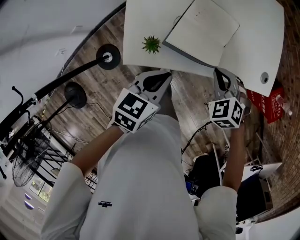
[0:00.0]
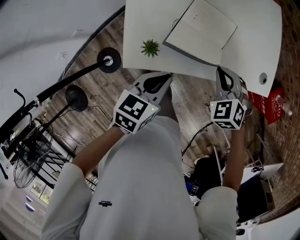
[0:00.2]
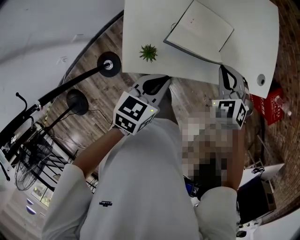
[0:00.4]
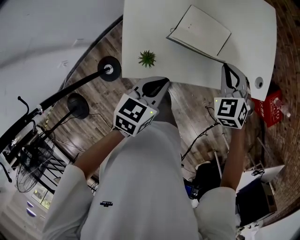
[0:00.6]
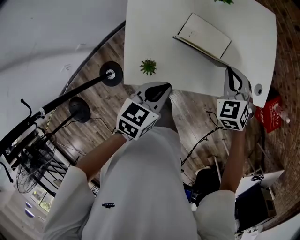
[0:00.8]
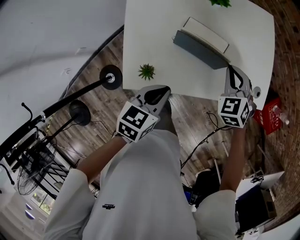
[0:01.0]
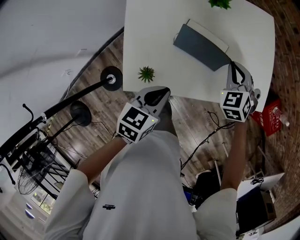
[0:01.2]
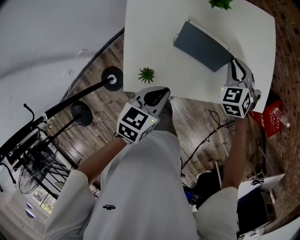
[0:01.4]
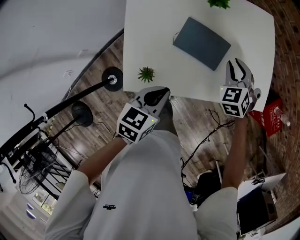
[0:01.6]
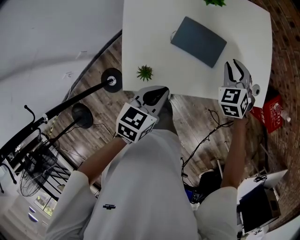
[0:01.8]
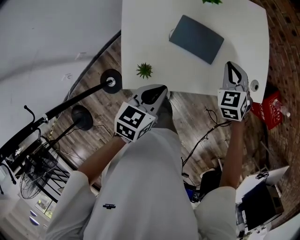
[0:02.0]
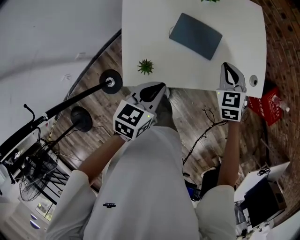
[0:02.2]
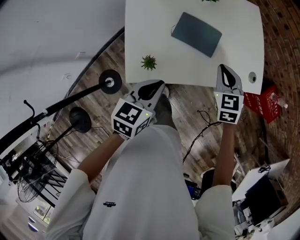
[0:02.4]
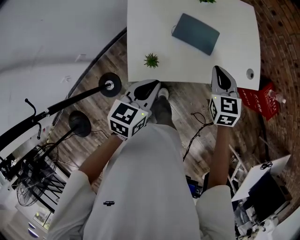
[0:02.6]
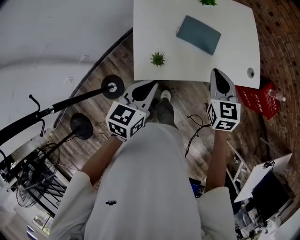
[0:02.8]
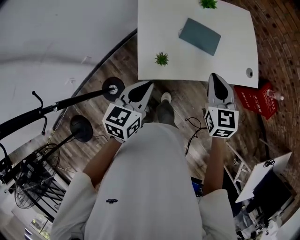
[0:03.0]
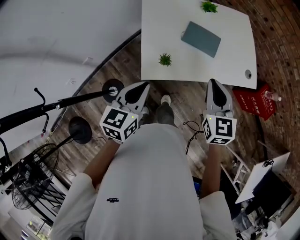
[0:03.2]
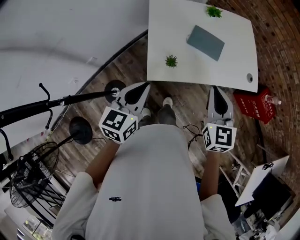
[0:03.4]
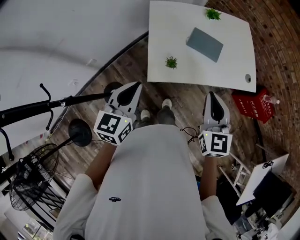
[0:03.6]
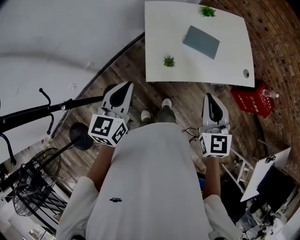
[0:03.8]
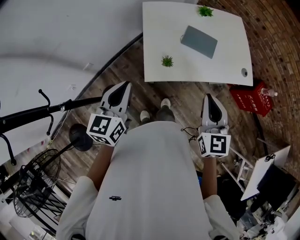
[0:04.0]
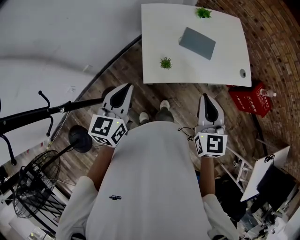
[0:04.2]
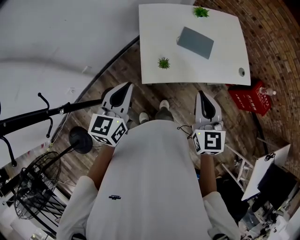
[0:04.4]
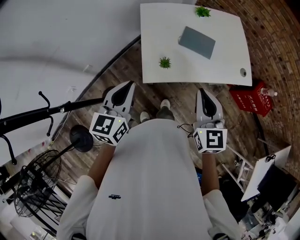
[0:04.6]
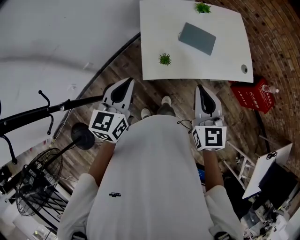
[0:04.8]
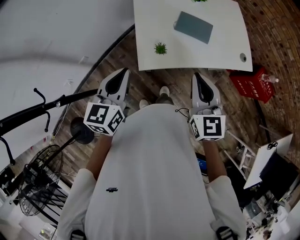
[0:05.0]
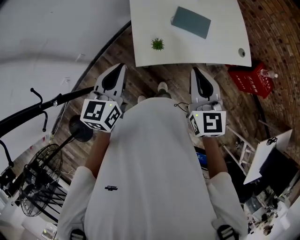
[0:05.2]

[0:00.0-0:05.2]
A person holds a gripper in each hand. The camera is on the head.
0:00.0 to 0:01.8: The right gripper moves forward, about 15 cm, changes its angle by roughly 30 degrees, and opens.
0:01.8 to 0:03.4: The right gripper moves backward, upward and to the left, about 35 cm, swivels approximately 40 degrees, and closes its fingers. The left gripper heads backward, to the left and upward, covering roughly 25 cm, and changes its angle by roughly 20 degrees.

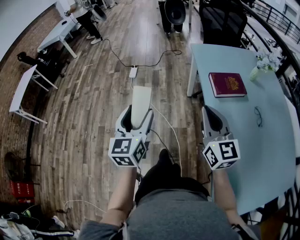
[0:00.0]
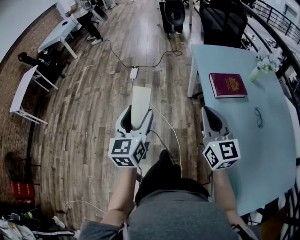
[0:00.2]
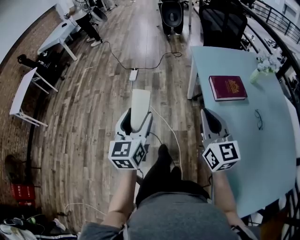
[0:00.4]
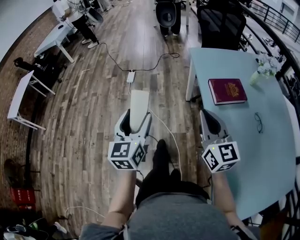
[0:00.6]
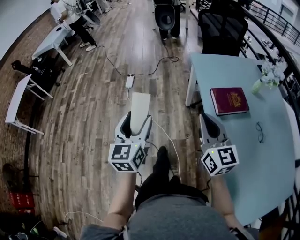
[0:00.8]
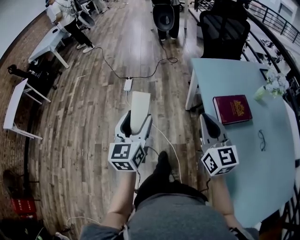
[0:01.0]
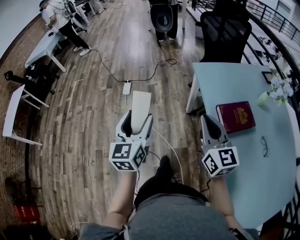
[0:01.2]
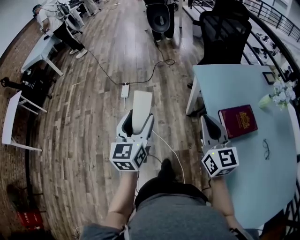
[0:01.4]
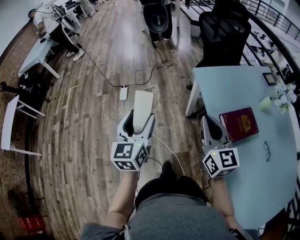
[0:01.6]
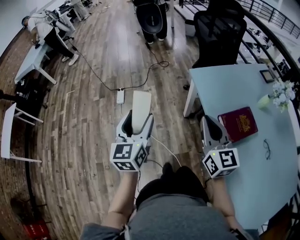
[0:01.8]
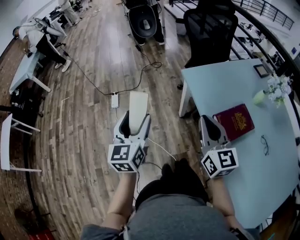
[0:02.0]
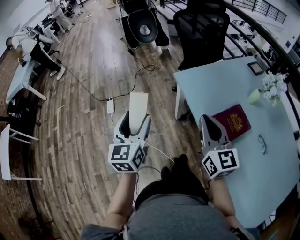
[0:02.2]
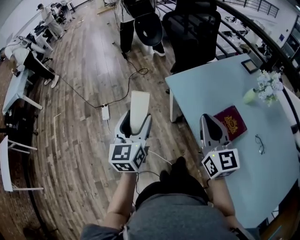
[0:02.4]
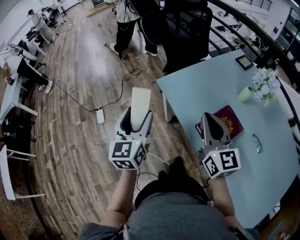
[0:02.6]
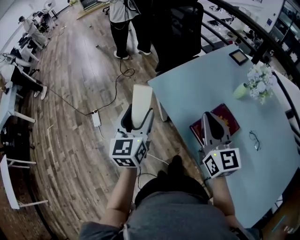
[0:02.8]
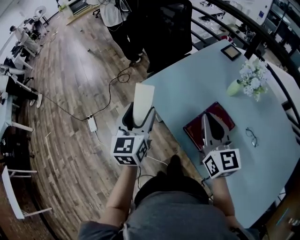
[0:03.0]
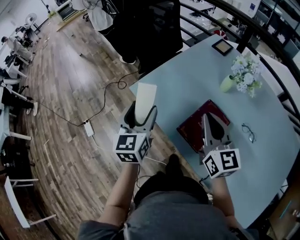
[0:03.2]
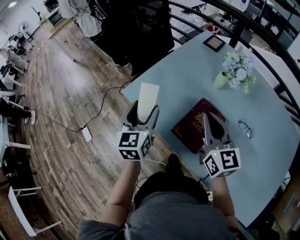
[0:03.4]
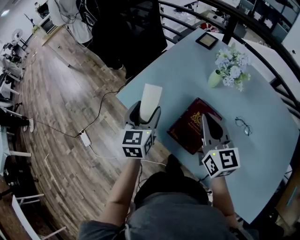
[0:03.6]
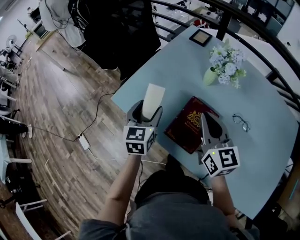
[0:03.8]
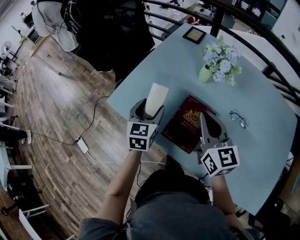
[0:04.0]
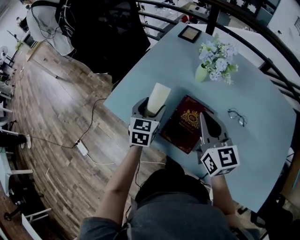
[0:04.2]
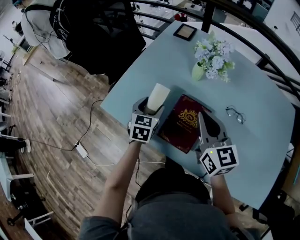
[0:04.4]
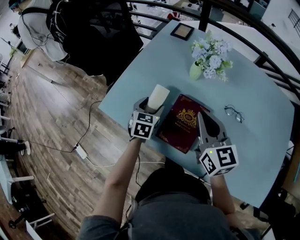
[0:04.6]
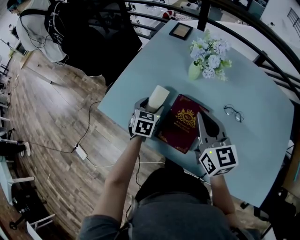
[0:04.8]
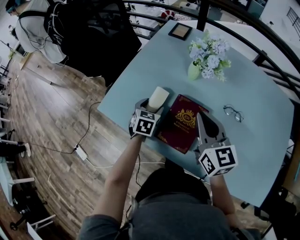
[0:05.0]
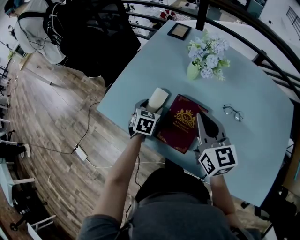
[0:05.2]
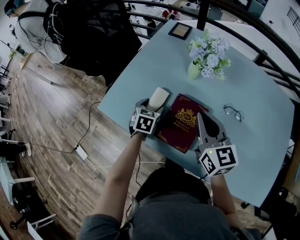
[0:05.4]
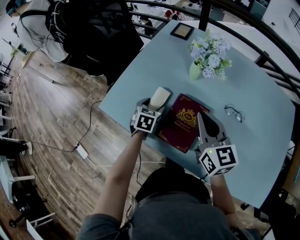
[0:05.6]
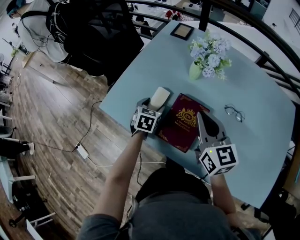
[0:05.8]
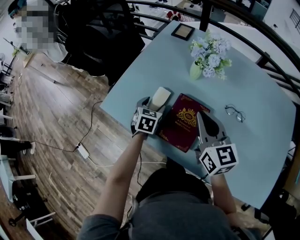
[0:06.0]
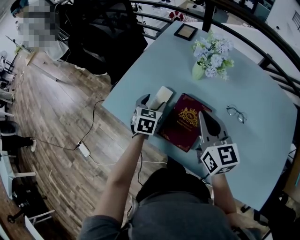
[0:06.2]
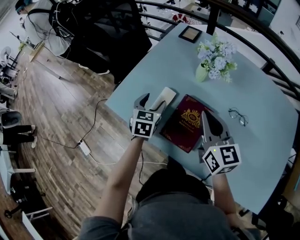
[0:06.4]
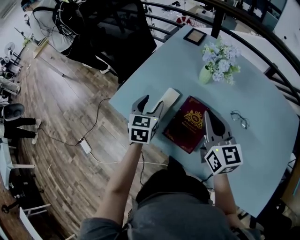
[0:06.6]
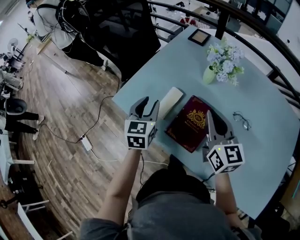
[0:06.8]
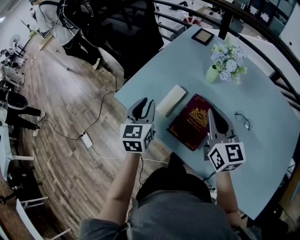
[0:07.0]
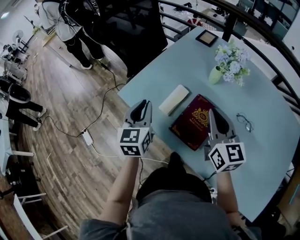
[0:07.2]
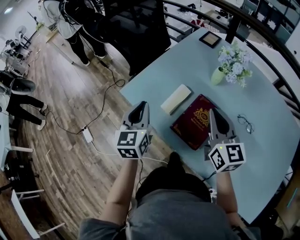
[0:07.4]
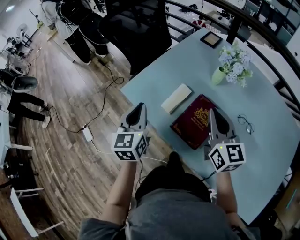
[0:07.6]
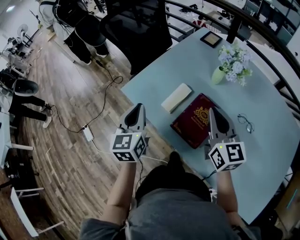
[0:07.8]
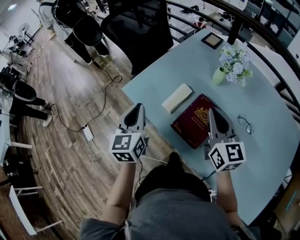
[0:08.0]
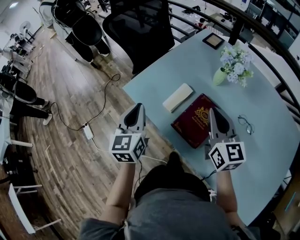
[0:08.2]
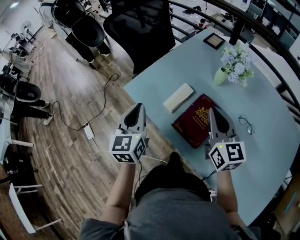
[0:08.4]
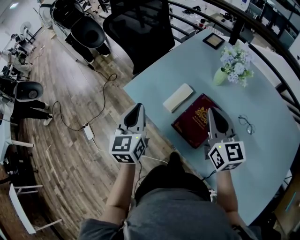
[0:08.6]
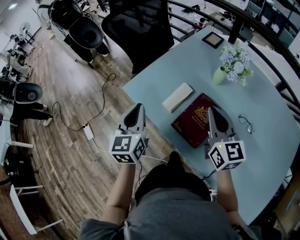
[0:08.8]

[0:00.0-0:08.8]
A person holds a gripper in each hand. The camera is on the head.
0:00.0 to 0:01.4: Both grippers move forward, about 25 cm.
0:01.4 to 0:03.0: The right gripper moves some 20 cm, and turns by approximately 30 degrees, while the left gripper moves about 30 cm, and rotates about 30 degrees.
0:03.0 to 0:04.4: The right gripper is displaced to the right by roughly 10 cm. The left gripper goes approximately 25 cm to the right, downward and forward, and rotates some 40 degrees.
0:04.4 to 0:05.8: The left gripper moves downward, some 5 cm.
0:05.8 to 0:07.4: The left gripper heads upward, to the left and backward, covering some 25 cm, changes its angle by approximately 40 degrees, and closes up.
0:07.4 to 0:08.8: The grippers move only a little.

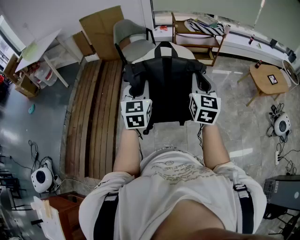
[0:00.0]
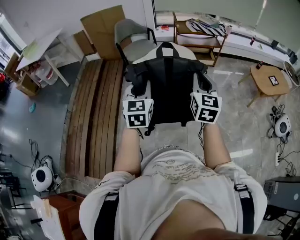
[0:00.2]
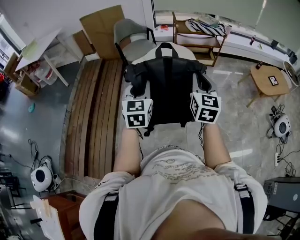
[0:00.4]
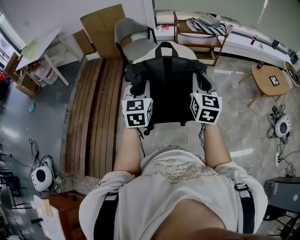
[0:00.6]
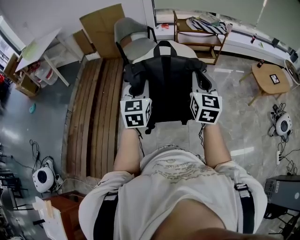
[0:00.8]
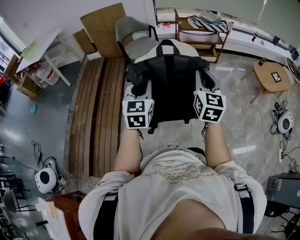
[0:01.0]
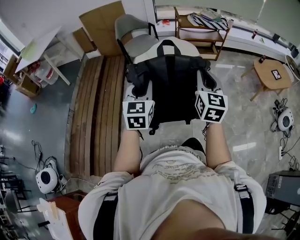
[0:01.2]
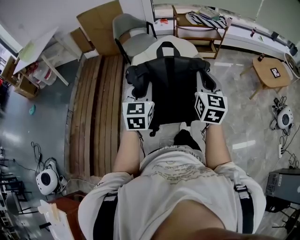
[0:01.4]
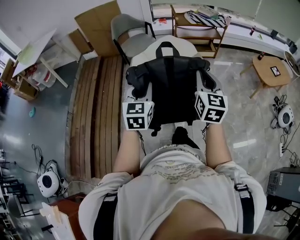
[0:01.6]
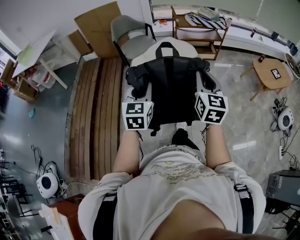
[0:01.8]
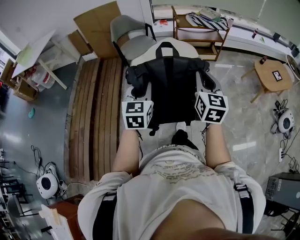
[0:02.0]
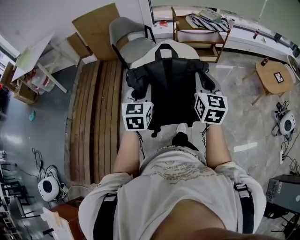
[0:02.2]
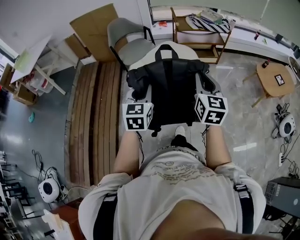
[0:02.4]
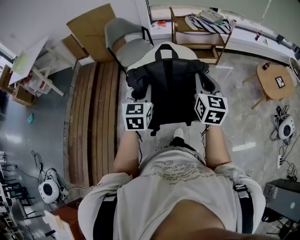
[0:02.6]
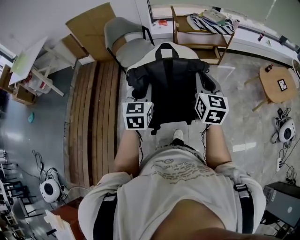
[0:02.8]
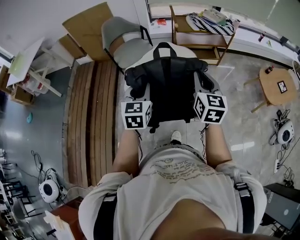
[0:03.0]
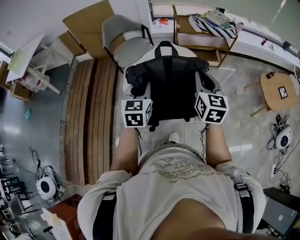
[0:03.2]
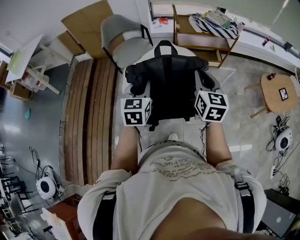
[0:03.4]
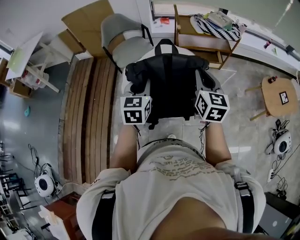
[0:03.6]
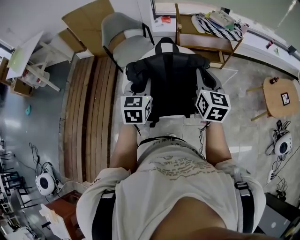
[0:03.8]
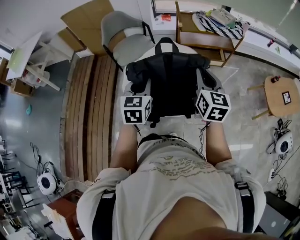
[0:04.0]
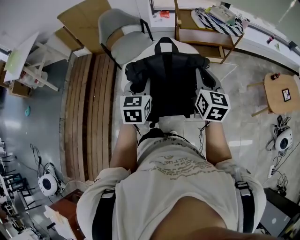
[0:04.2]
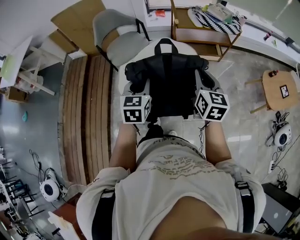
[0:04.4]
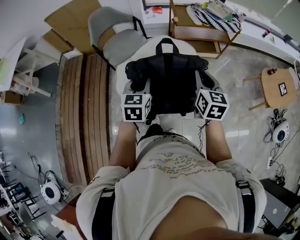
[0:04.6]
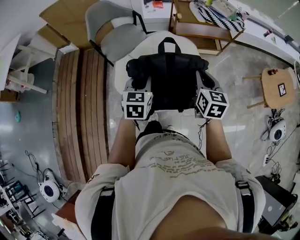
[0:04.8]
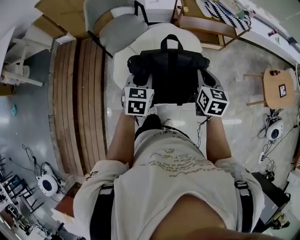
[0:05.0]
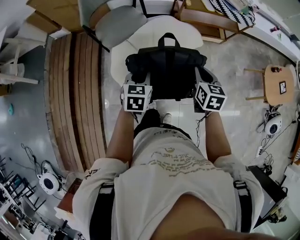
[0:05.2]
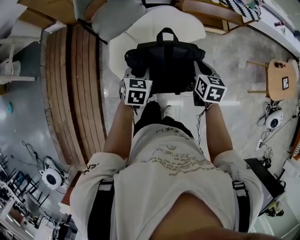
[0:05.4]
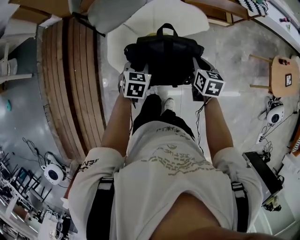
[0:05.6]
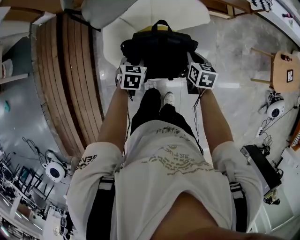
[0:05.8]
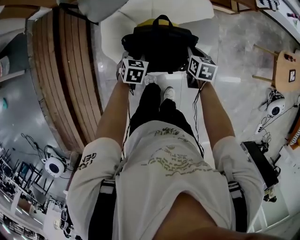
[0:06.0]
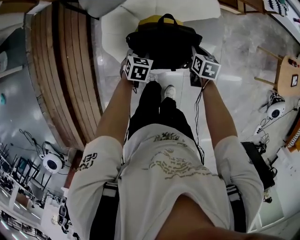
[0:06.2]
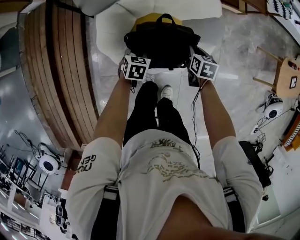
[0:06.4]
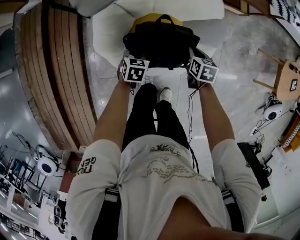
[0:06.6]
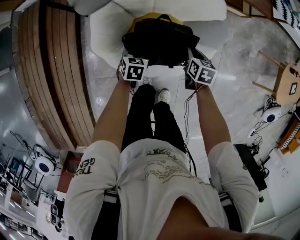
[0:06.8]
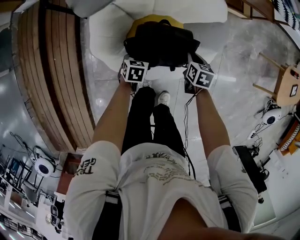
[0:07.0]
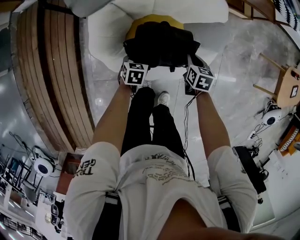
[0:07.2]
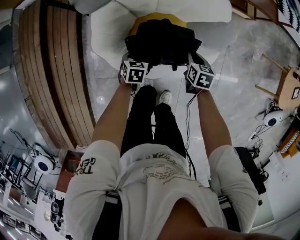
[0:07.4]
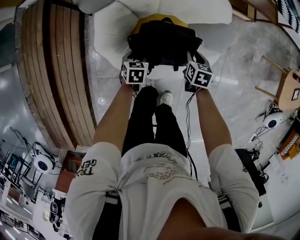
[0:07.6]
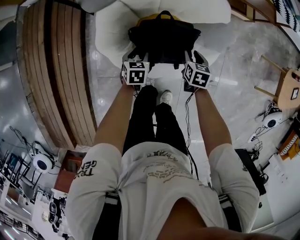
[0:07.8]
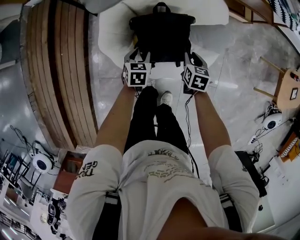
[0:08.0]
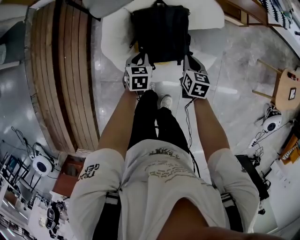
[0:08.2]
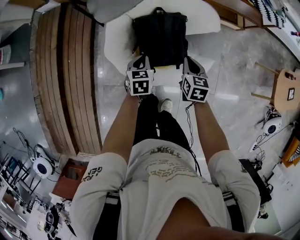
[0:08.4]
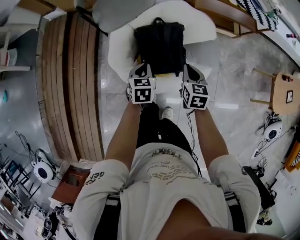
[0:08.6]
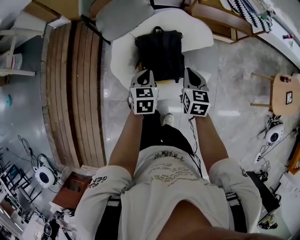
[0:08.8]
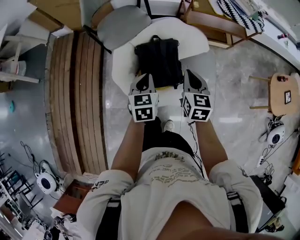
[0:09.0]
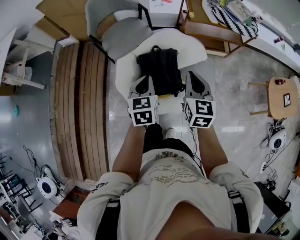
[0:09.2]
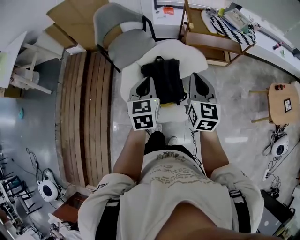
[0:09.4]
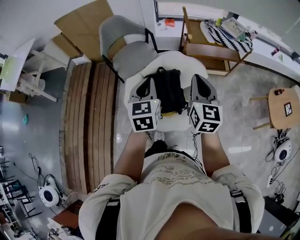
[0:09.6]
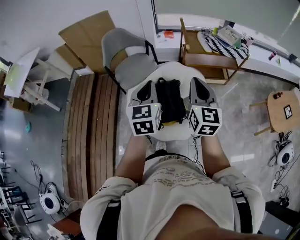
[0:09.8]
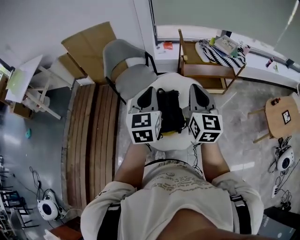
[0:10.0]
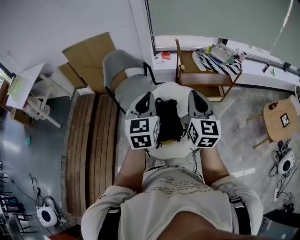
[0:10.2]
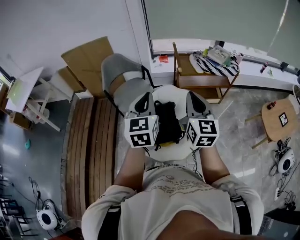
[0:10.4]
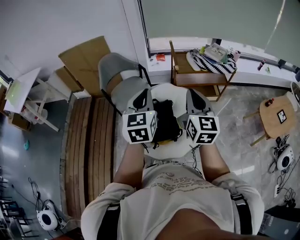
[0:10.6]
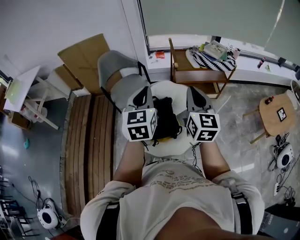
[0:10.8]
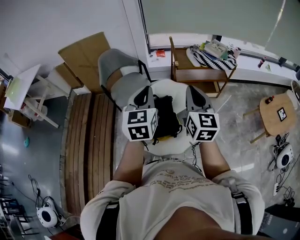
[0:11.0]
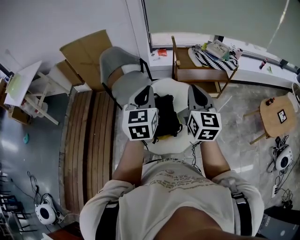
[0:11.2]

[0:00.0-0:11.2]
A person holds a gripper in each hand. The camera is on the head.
0:00.0 to 0:01.6: The grippers make only small movements.
0:01.6 to 0:03.2: The two grippers go roughly 30 cm forward.
0:03.2 to 0:04.8: The grippers both shift forward and downward by approximately 20 cm.
0:04.8 to 0:06.4: The grippers both shift downward by about 40 cm. The left gripper turns by some 30 degrees, while the right gripper tips its fingers downward by roughly 30 degrees.
0:06.4 to 0:08.0: The left gripper reaches some 10 cm downward, then returns, and opens.
0:08.0 to 0:09.6: The two grippers go some 50 cm upward. The right gripper tilts its fingers roughly 50 degrees upward, and closes up. Meanwhile the left gripper tilts its fingers approximately 30 degrees upward, and closes.
0:09.6 to 0:11.2: Both grippers travel together upward, roughly 10 cm.
